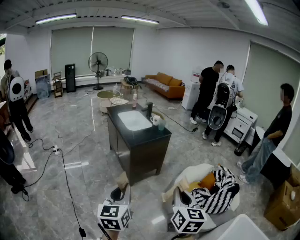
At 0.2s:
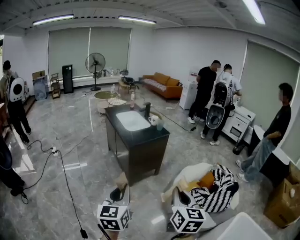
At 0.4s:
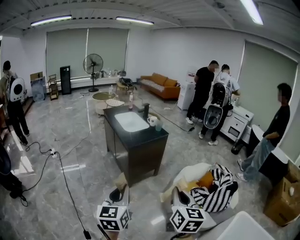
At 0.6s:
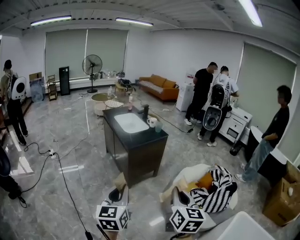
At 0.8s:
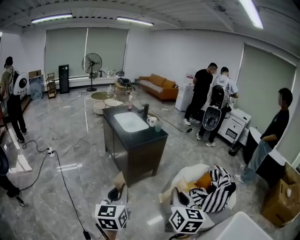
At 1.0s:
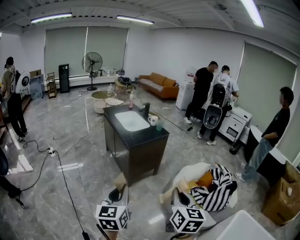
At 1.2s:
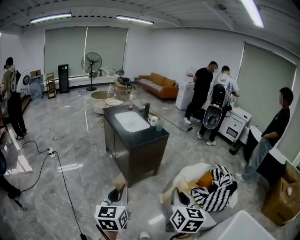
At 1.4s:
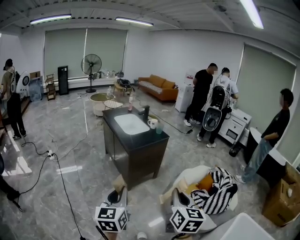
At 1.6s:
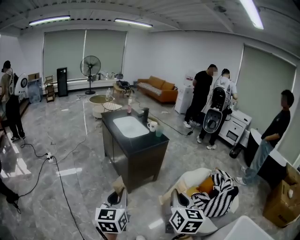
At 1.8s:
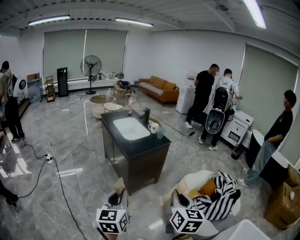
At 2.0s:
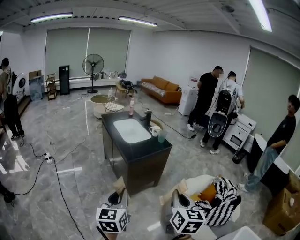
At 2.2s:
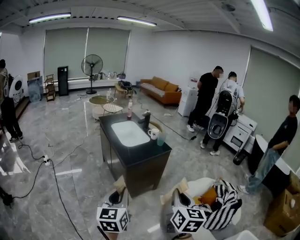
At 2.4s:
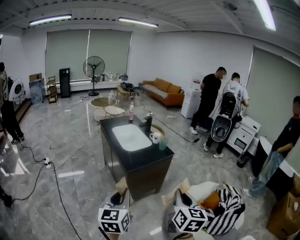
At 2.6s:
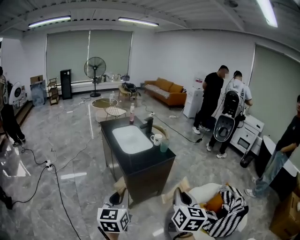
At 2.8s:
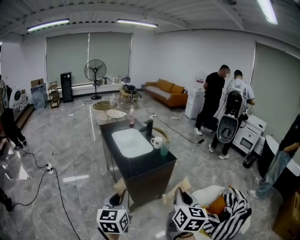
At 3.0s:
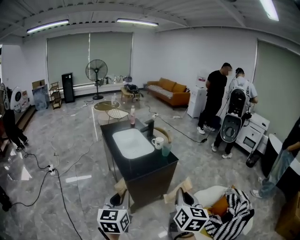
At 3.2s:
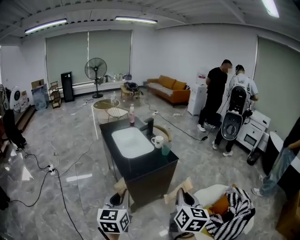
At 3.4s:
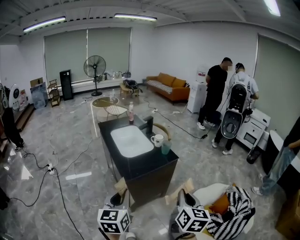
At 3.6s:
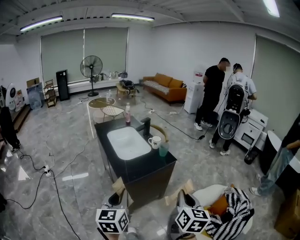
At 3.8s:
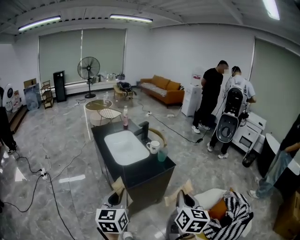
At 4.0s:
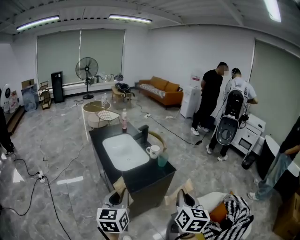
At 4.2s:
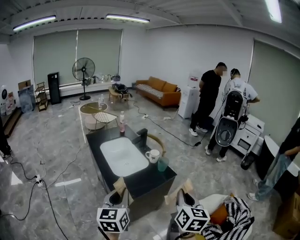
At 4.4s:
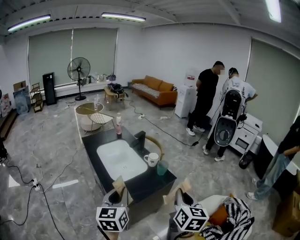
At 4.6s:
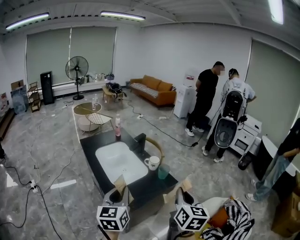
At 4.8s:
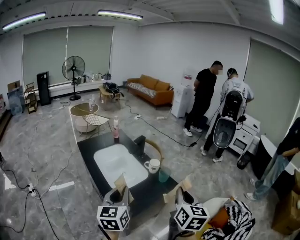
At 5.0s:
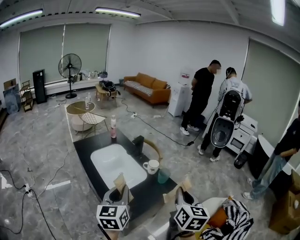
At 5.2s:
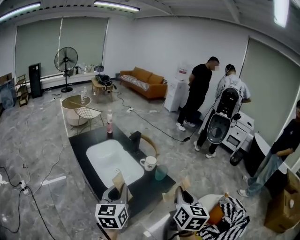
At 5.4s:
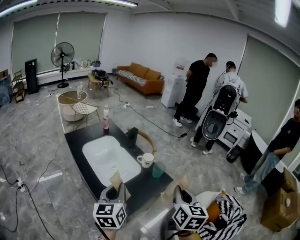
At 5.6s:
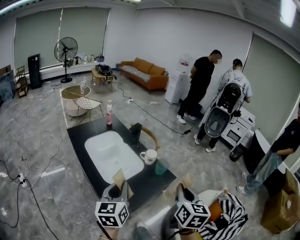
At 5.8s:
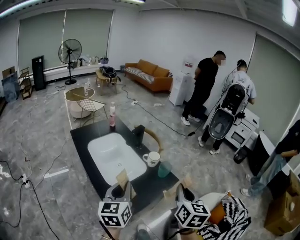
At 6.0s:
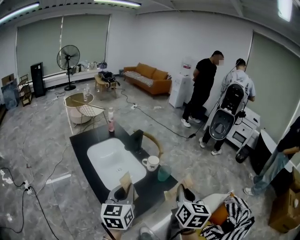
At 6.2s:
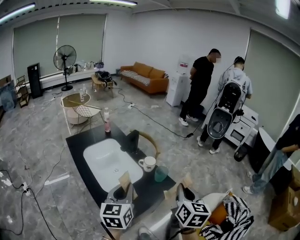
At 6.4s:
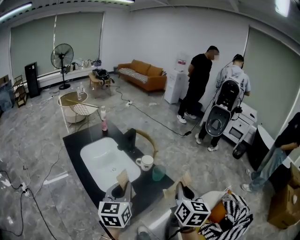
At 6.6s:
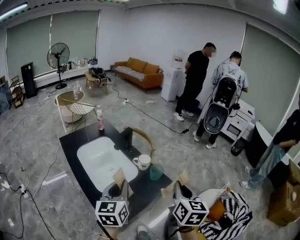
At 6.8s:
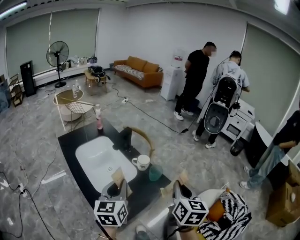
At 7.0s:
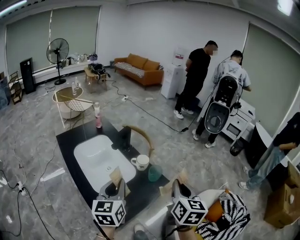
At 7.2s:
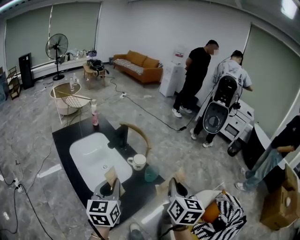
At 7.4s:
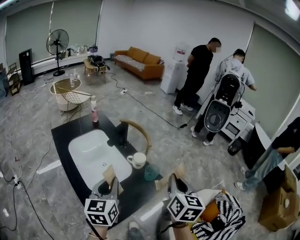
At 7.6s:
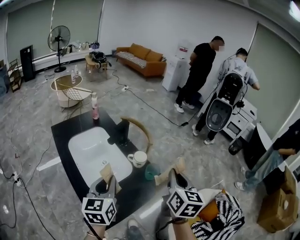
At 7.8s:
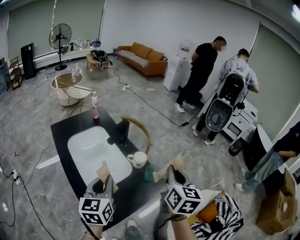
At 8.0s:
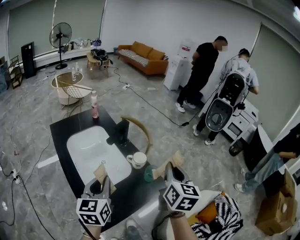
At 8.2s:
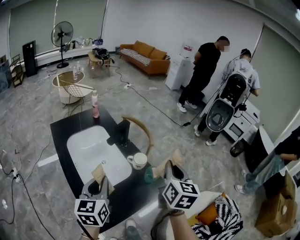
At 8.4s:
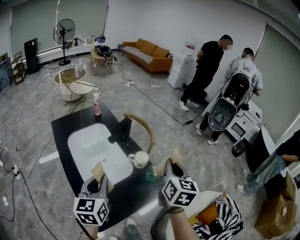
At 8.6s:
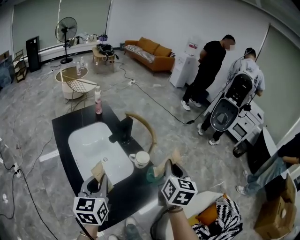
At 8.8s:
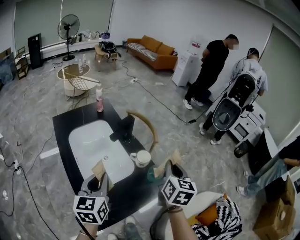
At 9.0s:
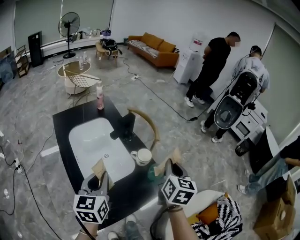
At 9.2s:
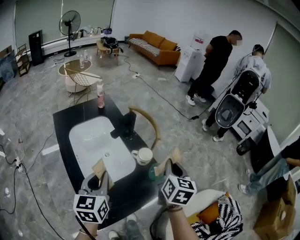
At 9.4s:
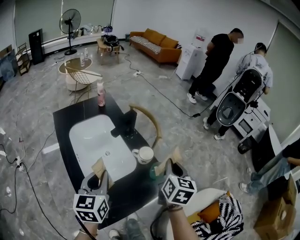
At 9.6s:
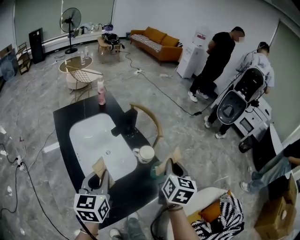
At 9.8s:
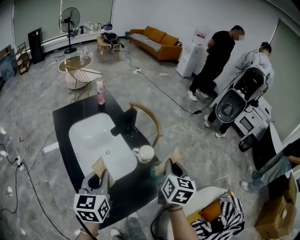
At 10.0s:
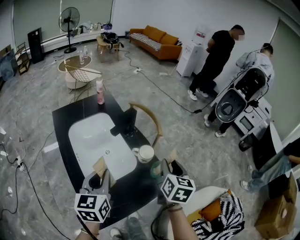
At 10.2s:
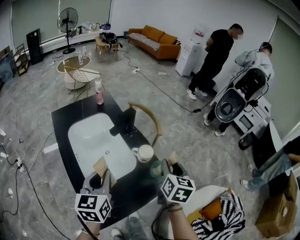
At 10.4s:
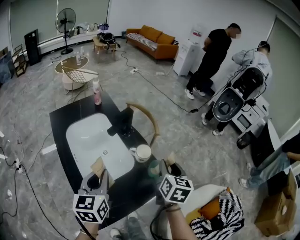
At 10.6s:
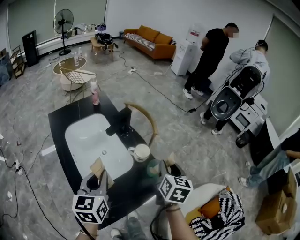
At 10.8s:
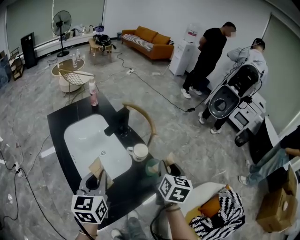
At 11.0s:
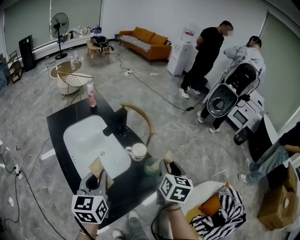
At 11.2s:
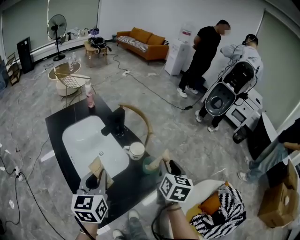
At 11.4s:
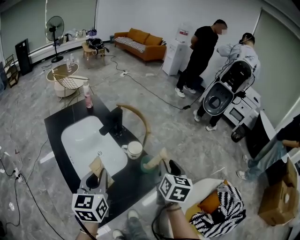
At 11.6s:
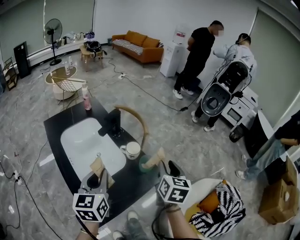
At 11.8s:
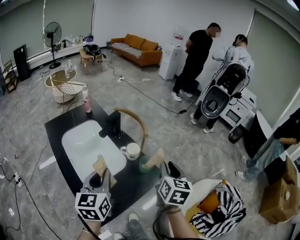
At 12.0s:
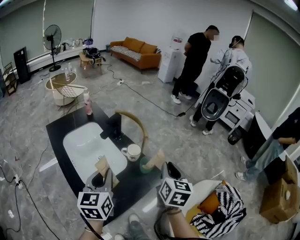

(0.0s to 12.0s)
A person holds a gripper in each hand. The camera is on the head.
0.0s - 1.6s: The left gripper heads to the left, covering roughly 5 cm, while the right gripper shifts by about 5 cm.
1.6s - 3.0s: The grippers both shift forward by some 30 cm.
3.0s - 4.4s: The two grippers go about 25 cm forward.
4.4s - 6.0s: The grippers both shift forward by roughly 15 cm.
6.0s - 7.6s: Both grippers move forward, some 10 cm.
7.6s - 9.0s: The right gripper heads forward and downward, covering about 10 cm.
9.0s - 10.4s: The right gripper heads downward, covering approximately 5 cm, and opens.
10.4s - 12.0s: The left gripper moves some 5 cm; the right gripper is displaced backward and upward by approximately 10 cm, and closes.

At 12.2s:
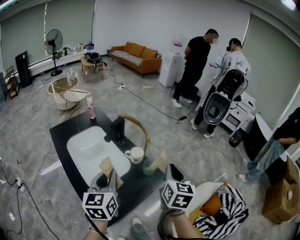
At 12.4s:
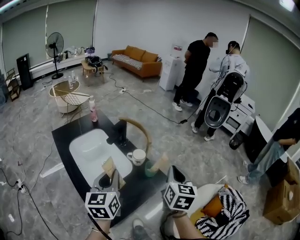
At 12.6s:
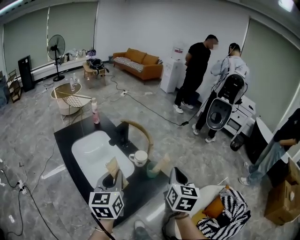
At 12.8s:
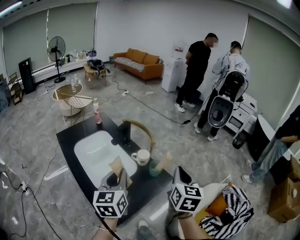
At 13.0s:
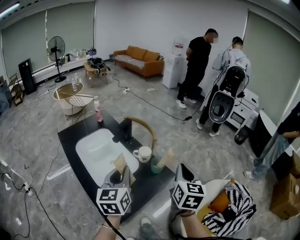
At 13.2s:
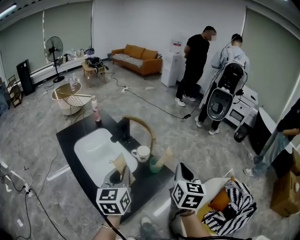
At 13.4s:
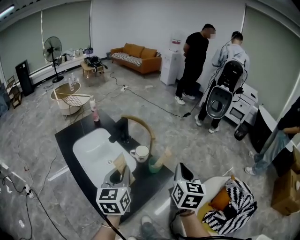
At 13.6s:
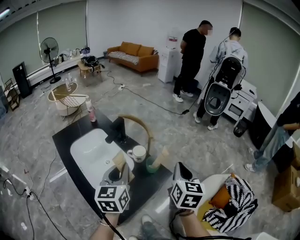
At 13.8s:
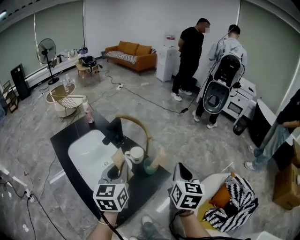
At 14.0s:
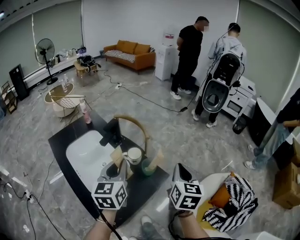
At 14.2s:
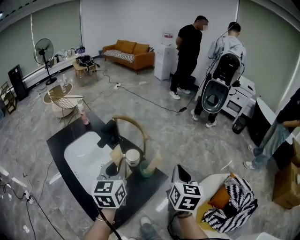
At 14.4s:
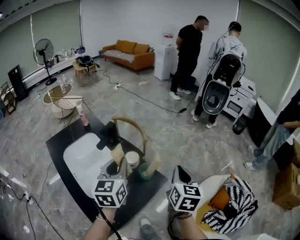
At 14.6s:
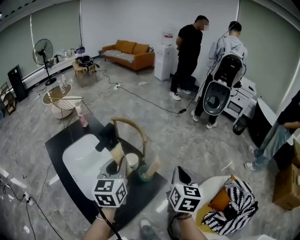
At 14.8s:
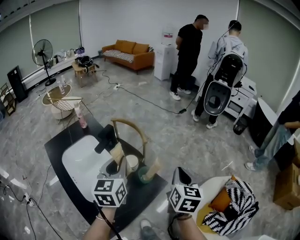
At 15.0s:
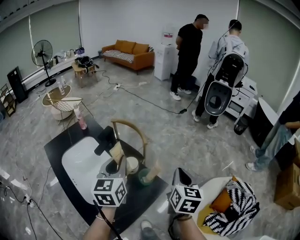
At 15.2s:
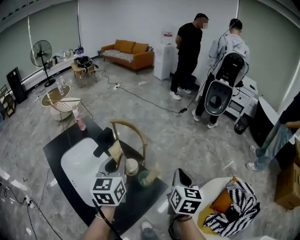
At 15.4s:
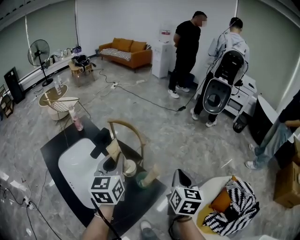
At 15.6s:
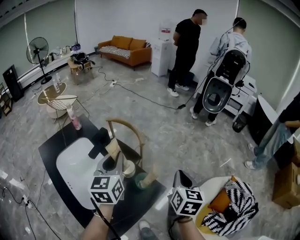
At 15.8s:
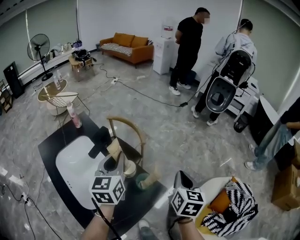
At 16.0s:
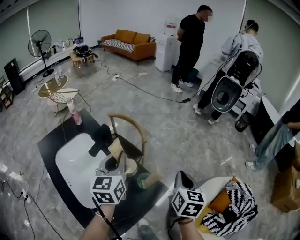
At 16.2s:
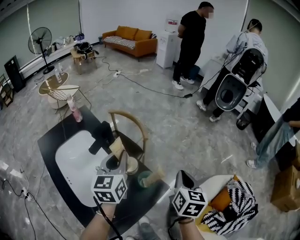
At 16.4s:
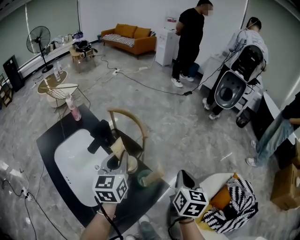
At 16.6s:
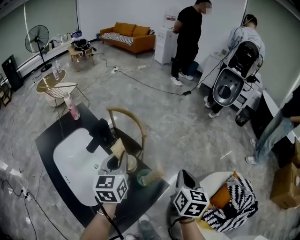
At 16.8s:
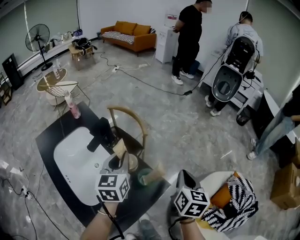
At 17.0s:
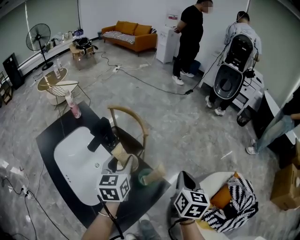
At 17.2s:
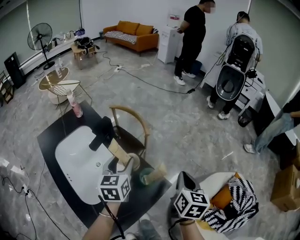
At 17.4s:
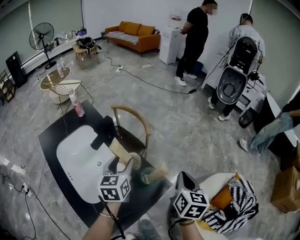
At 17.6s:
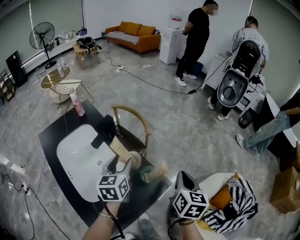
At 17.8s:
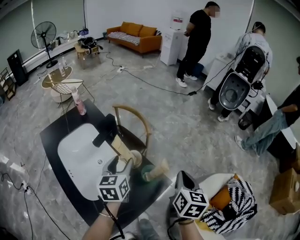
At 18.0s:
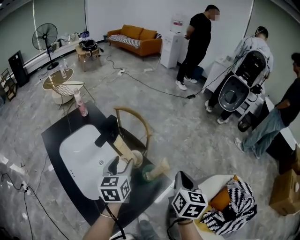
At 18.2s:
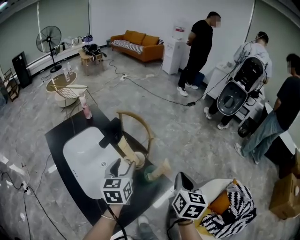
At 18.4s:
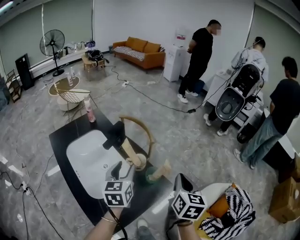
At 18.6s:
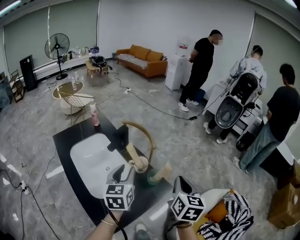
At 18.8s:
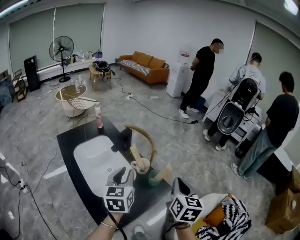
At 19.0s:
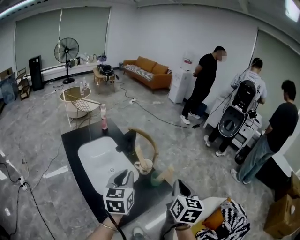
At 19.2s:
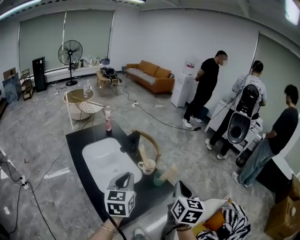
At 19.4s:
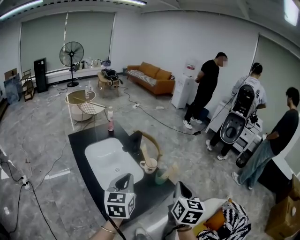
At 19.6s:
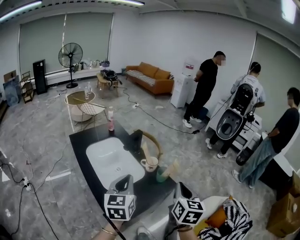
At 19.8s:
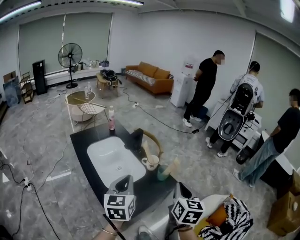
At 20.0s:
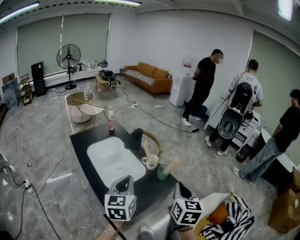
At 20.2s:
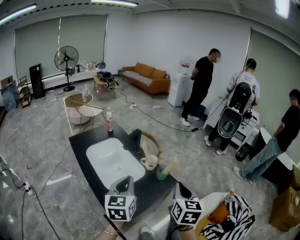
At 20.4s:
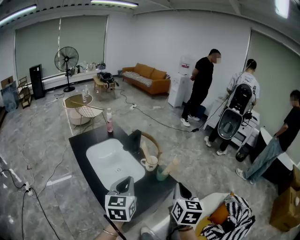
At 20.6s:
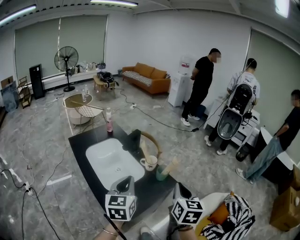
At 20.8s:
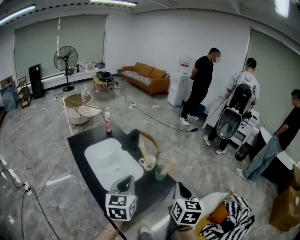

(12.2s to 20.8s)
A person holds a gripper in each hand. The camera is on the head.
12.2s - 13.6s: The left gripper ends up about 5 cm from where it was.
13.6s - 15.0s: The right gripper is displaced forward by roughly 5 cm; the left gripper travels forward by approximately 10 cm.
15.0s - 16.6s: The right gripper shifts some 5 cm downward. The left gripper moves downward and forward, some 10 cm.
16.6s - 18.0s: The left gripper ends up approximately 5 cm from where it was, and opens its fingers.
18.0s - 19.4s: The left gripper heads backward and upward, covering approximately 25 cm, and closes its fingers. Meanwhile the right gripper heads backward, upward and to the left, covering roughly 20 cm.
19.4s - 20.8s: The grippers make only small movements.

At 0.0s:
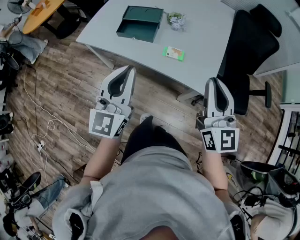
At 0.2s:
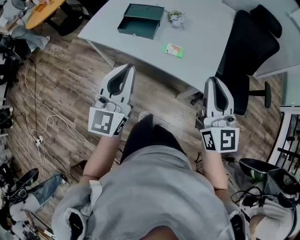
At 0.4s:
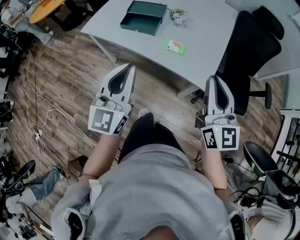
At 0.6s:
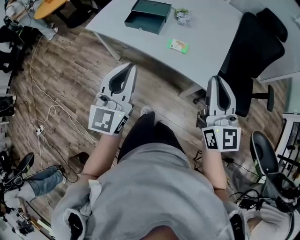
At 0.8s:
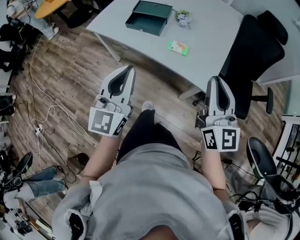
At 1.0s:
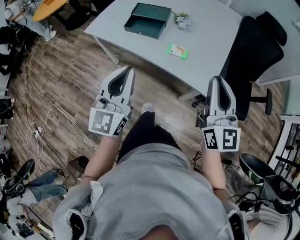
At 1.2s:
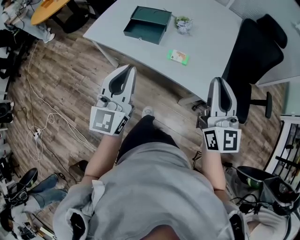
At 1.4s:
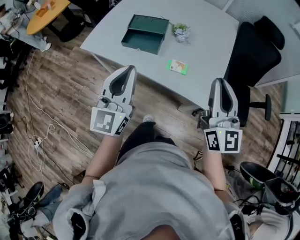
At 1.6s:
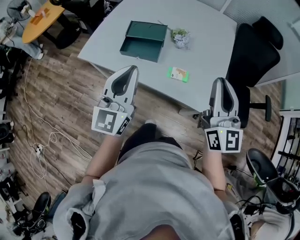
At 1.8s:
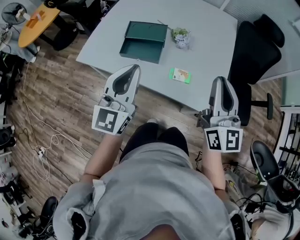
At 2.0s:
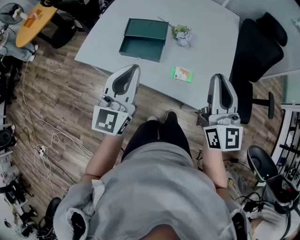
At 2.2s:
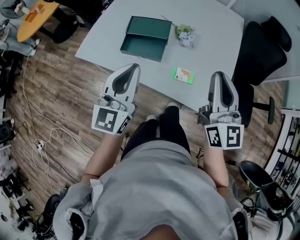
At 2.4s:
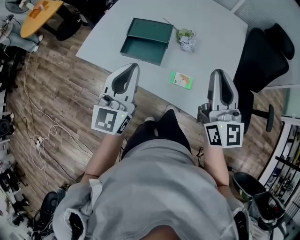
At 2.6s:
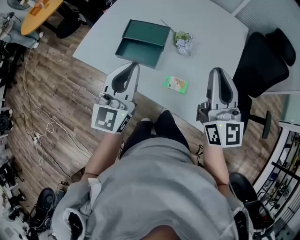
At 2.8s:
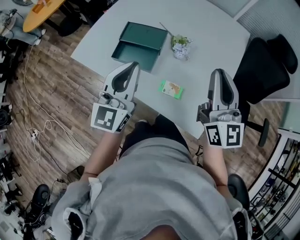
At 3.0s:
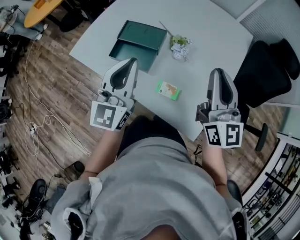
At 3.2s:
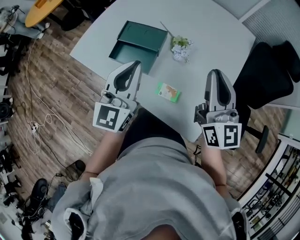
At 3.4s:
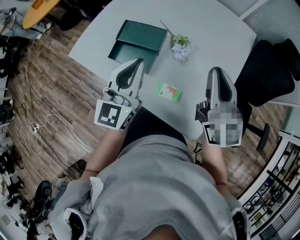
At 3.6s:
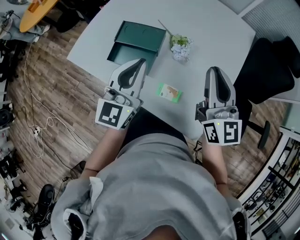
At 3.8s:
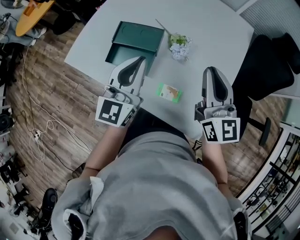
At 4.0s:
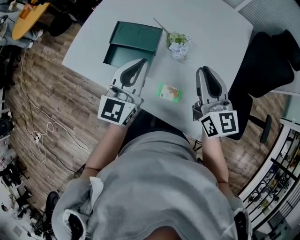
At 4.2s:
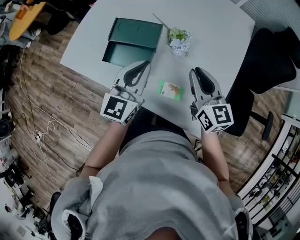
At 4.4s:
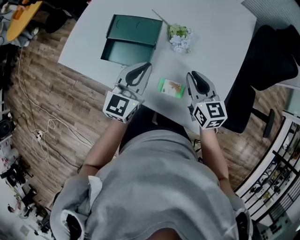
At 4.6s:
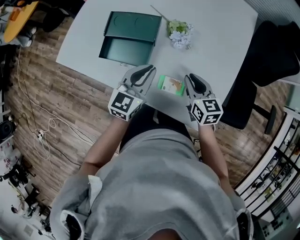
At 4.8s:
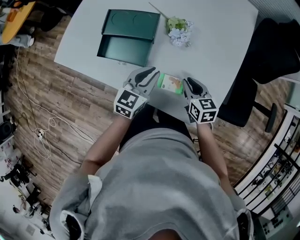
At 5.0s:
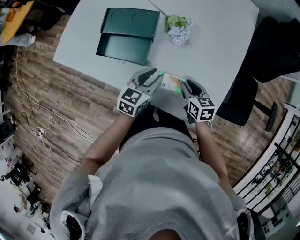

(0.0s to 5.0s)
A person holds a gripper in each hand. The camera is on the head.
0.0s - 1.6s: The grippers both shift forward by roughly 10 cm.
1.6s - 3.4s: The left gripper goes roughly 25 cm forward and to the right; the right gripper shifts approximately 25 cm forward.
3.4s - 5.0s: The two grippers go some 30 cm downward. The right gripper points its fingers roughly 50 degrees further downward; the left gripper changes its angle by about 40 degrees, and opens up.
